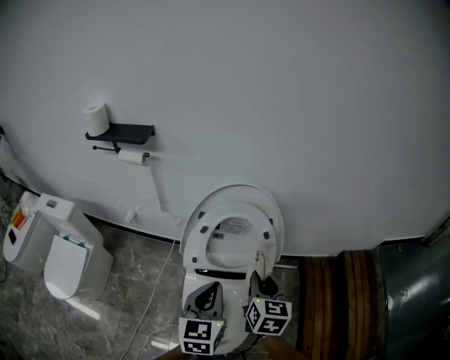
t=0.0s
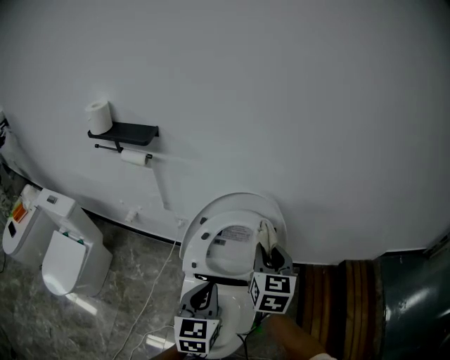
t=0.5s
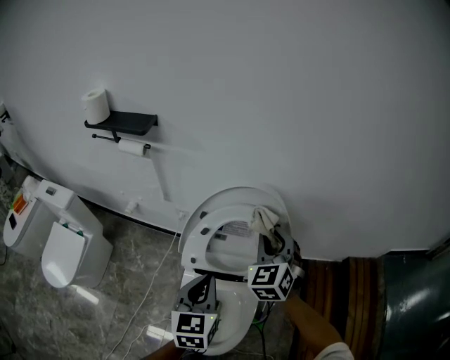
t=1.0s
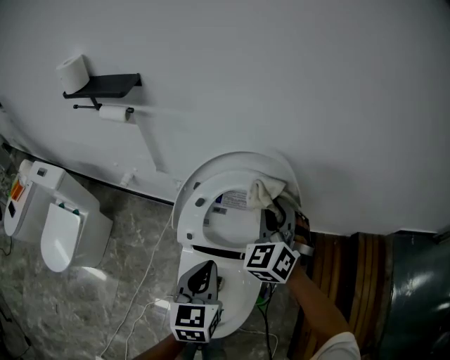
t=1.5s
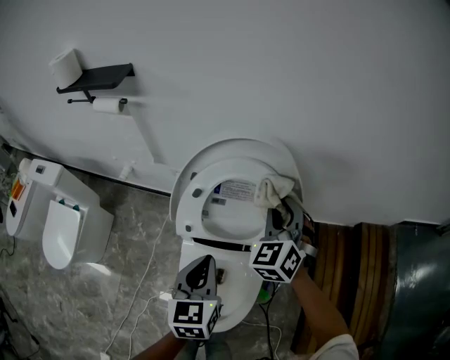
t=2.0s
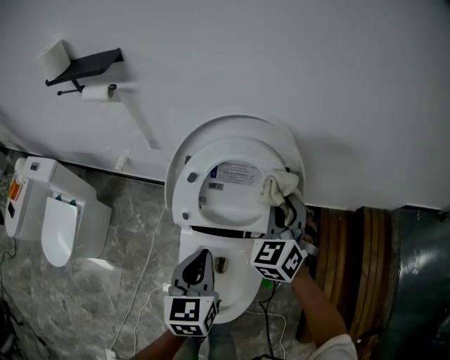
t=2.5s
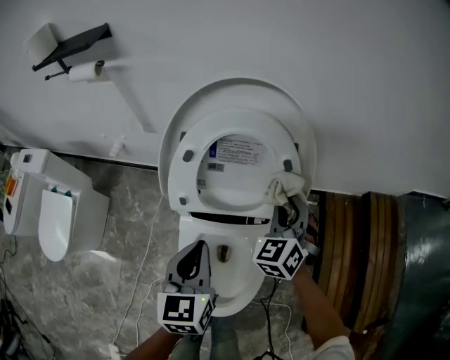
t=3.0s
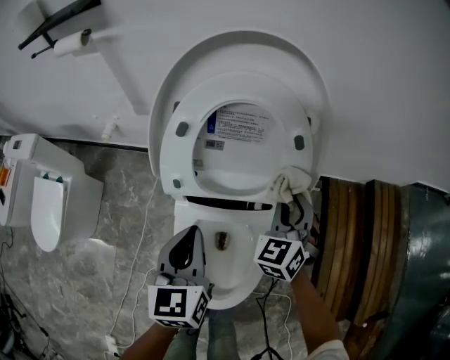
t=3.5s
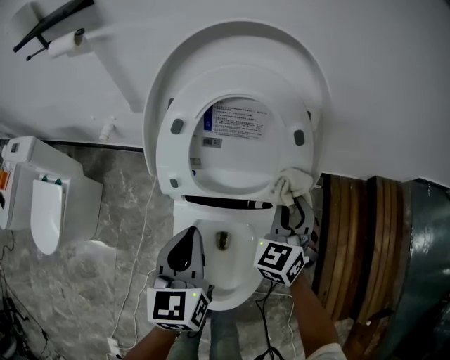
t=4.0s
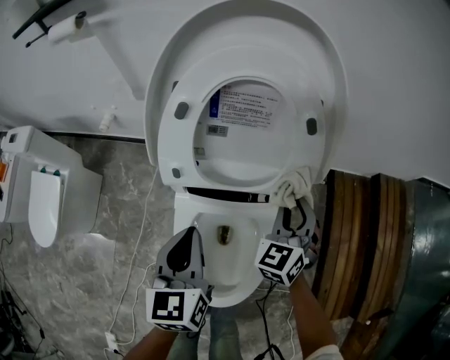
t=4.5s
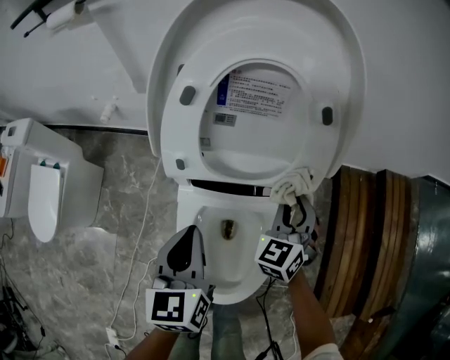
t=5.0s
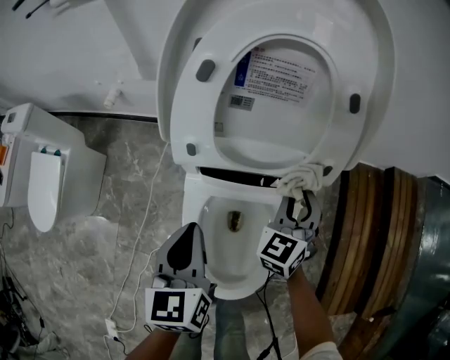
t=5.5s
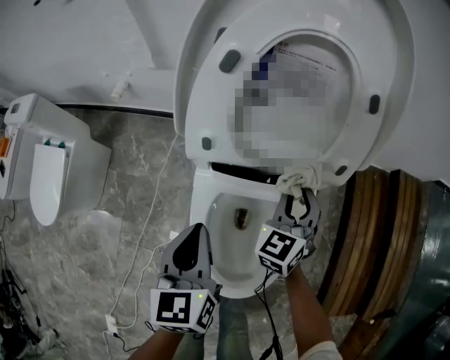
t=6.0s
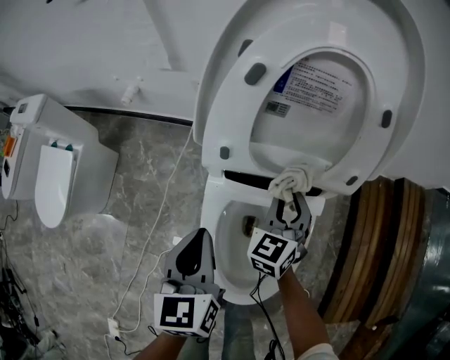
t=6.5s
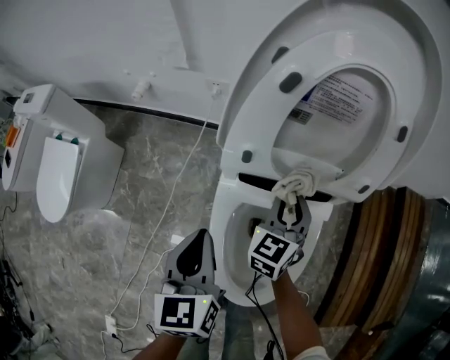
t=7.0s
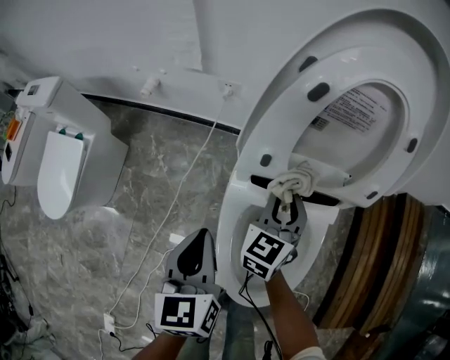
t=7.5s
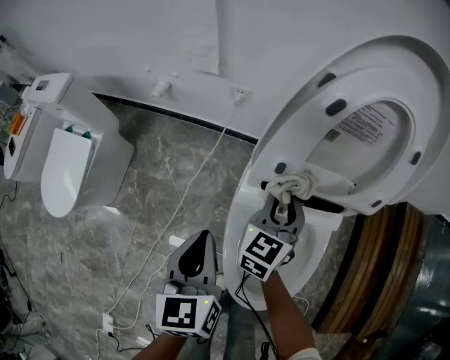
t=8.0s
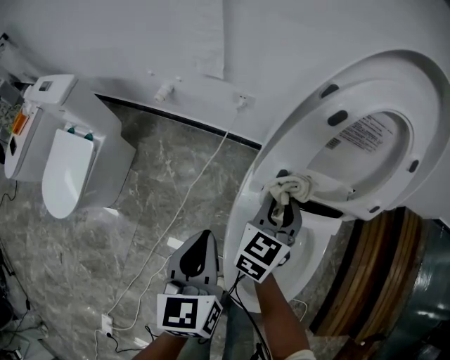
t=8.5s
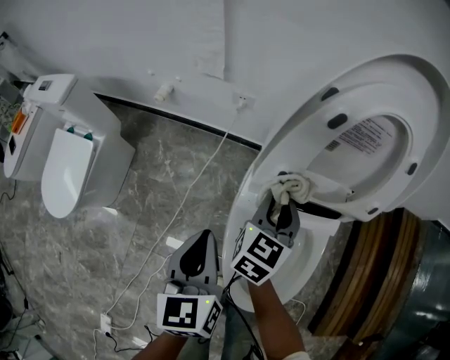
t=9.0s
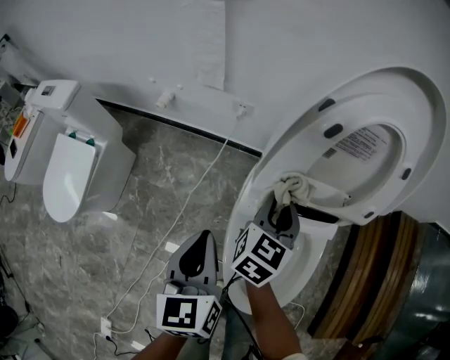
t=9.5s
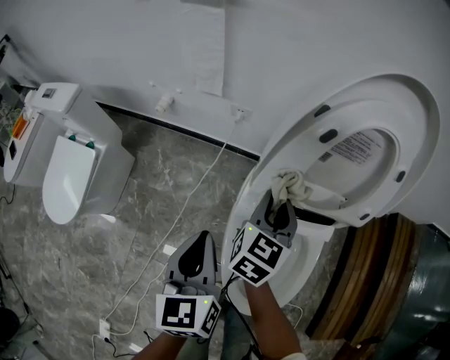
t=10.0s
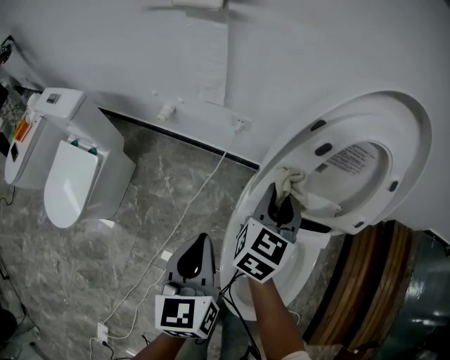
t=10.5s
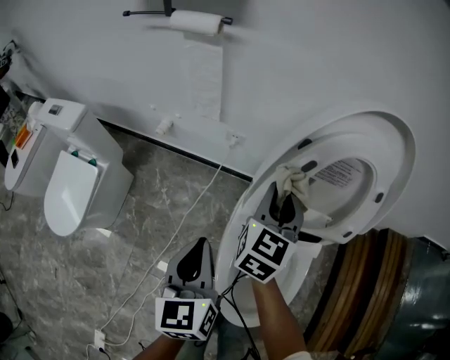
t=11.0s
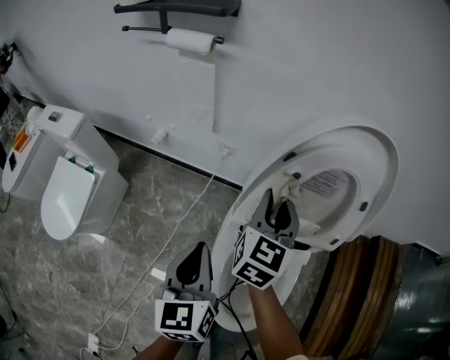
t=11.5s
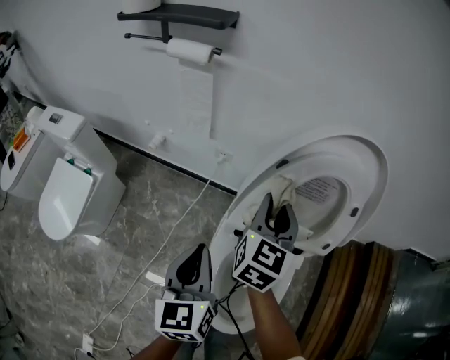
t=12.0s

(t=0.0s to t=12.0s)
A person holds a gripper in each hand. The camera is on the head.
t=0.0s - t=2.0s: The right gripper moves forward, roughly 15 cm, and rolls counterclockwise, seen from behind, by about 50 degrees. Meanwhile the left gripper goes approximately 10 cm downward and forward.
t=2.0s - t=4.0s: The right gripper moves downward and backward, about 20 cm. The left gripper heads downward, covering roughly 10 cm.
t=4.0s - t=6.0s: The left gripper shifts approximately 10 cm downward, backward and to the left, while the right gripper heads downward and to the left, covering roughly 10 cm.
t=6.0s - t=8.0s: Both grippers move to the left, about 15 cm.
t=8.0s - t=10.0s: The right gripper goes roughly 5 cm upward.
t=10.0s - t=12.0s: The left gripper goes about 5 cm upward. Meanwhile the right gripper is displaced upward by approximately 15 cm.

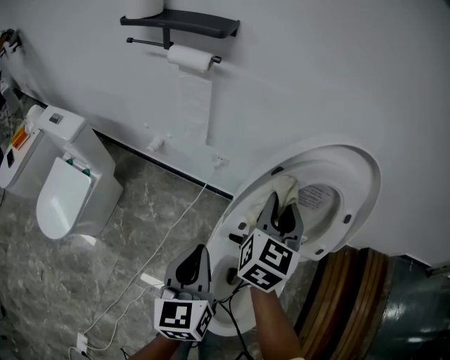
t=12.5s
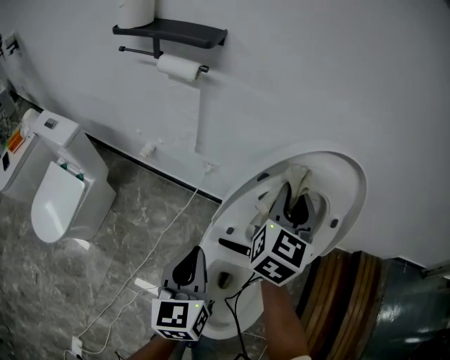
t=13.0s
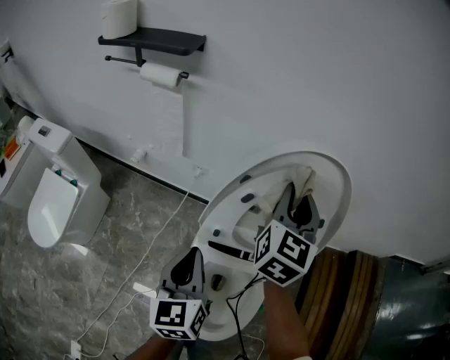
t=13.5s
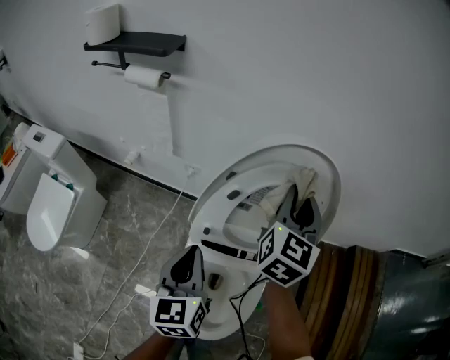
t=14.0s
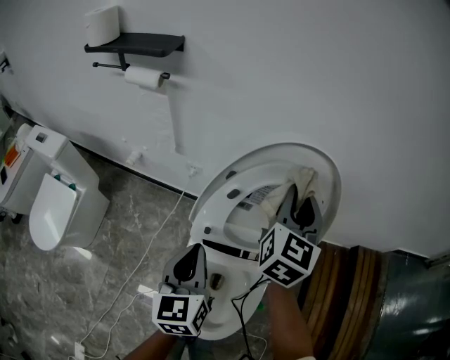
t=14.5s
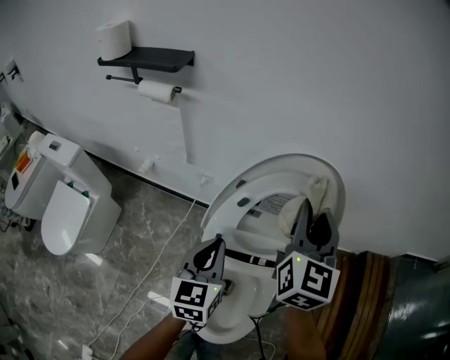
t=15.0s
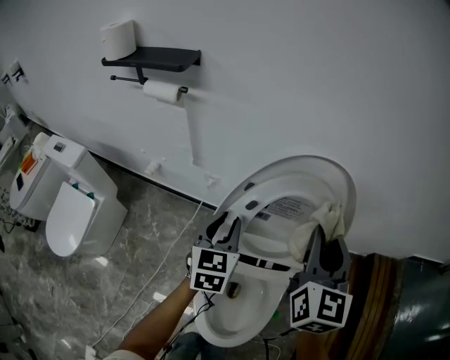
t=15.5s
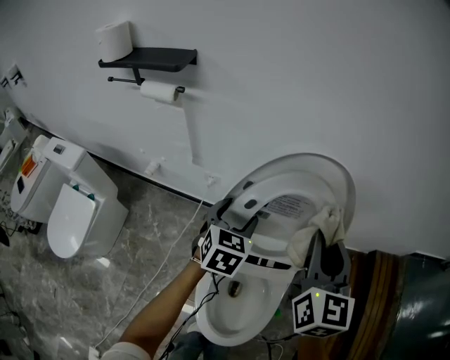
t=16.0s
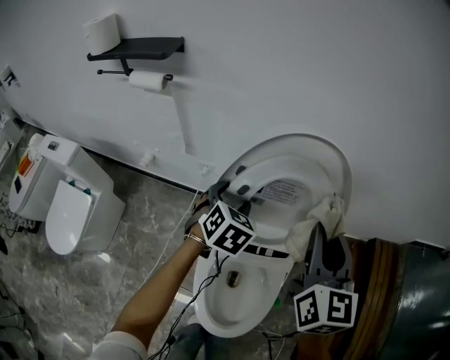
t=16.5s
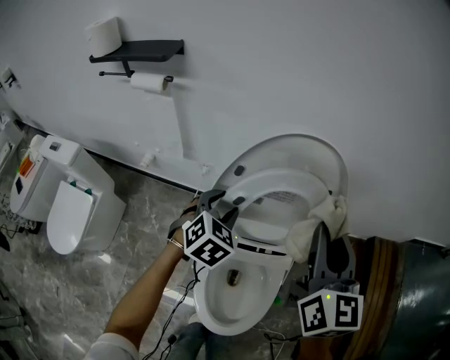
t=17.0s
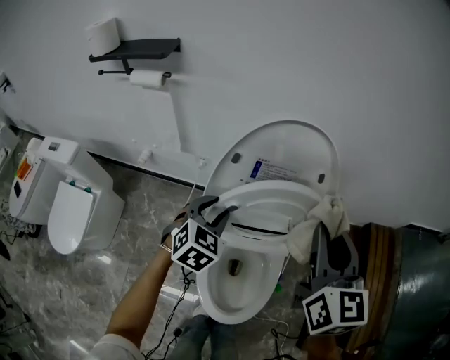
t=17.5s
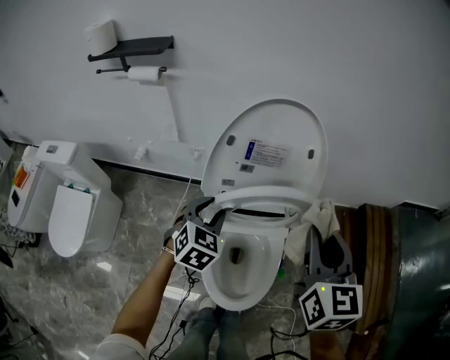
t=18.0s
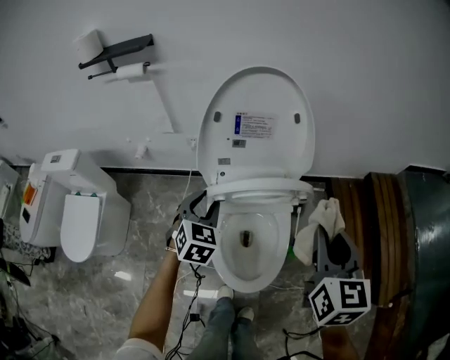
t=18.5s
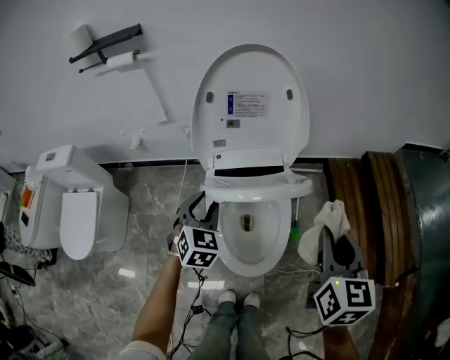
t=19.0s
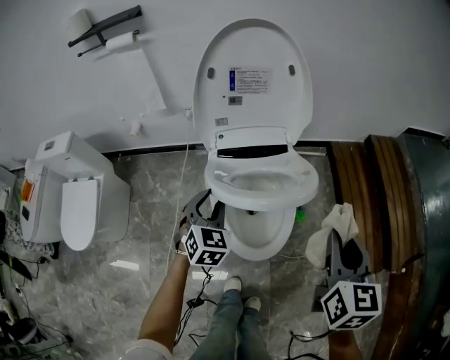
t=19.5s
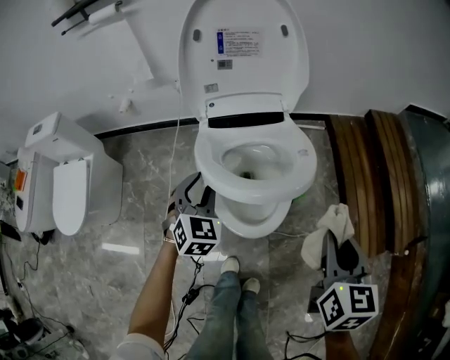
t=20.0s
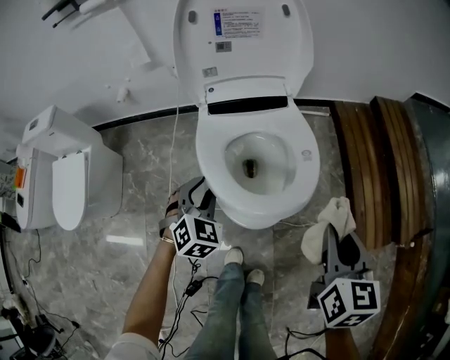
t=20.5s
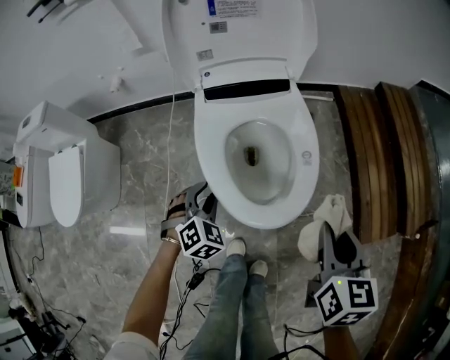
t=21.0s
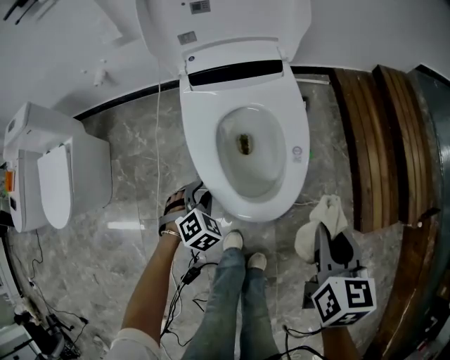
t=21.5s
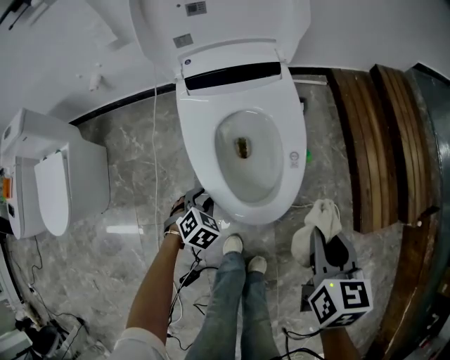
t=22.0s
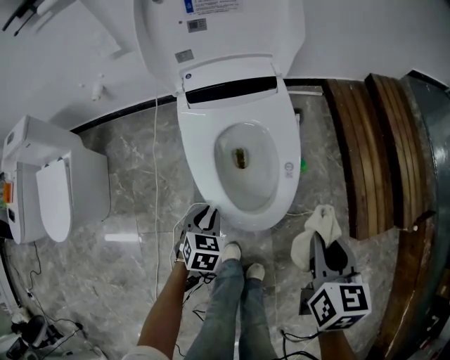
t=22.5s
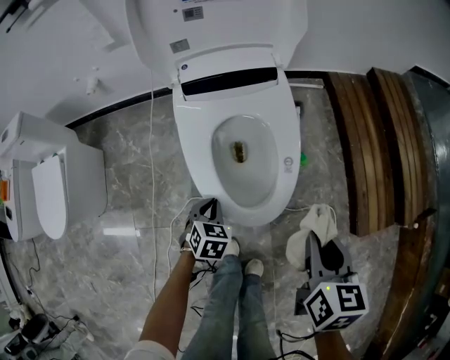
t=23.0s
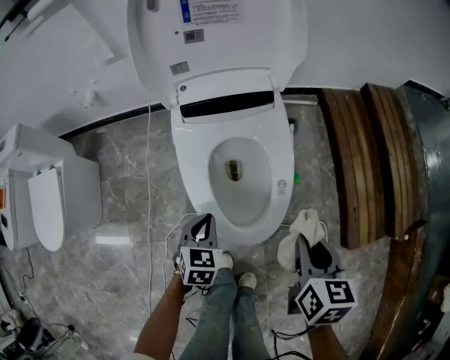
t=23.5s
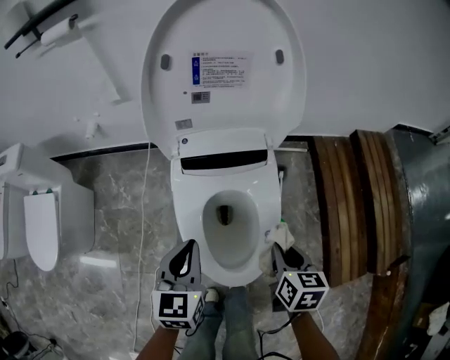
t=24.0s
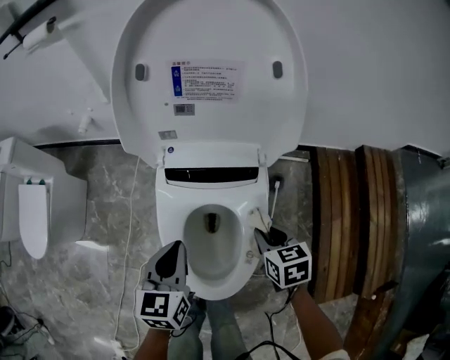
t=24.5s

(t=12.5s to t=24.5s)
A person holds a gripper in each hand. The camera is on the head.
t=12.5s - t=14.5s: The left gripper moves to the right, about 10 cm; the right gripper travels to the right and upward by roughly 15 cm.
t=14.5s - t=16.5s: The right gripper is displaced backward by roughly 10 cm. The left gripper moves forward, roughly 15 cm, changes its angle by approximately 50 degrees, and opens its fingers.
t=16.5s - t=18.5s: The grippers both shift backward by about 20 cm. The left gripper closes.
t=18.5s - t=20.5s: Both grippers travel together backward and downward, roughly 25 cm.
t=20.5s - t=22.5s: The right gripper shifts about 10 cm downward; the left gripper is displaced downward by some 15 cm, and swivels some 30 degrees.
t=22.5s - t=24.5s: The left gripper shifts some 25 cm upward and forward, and changes its angle by about 40 degrees, while the right gripper moves forward, approximately 30 cm, and swivels about 30 degrees.

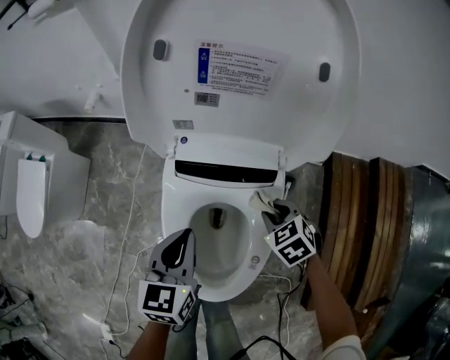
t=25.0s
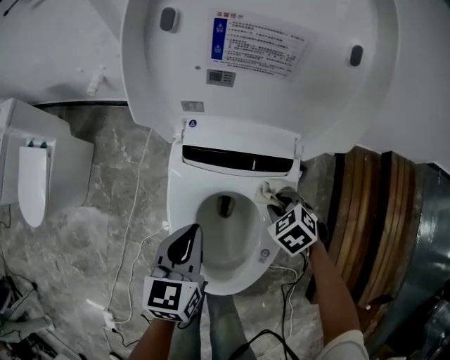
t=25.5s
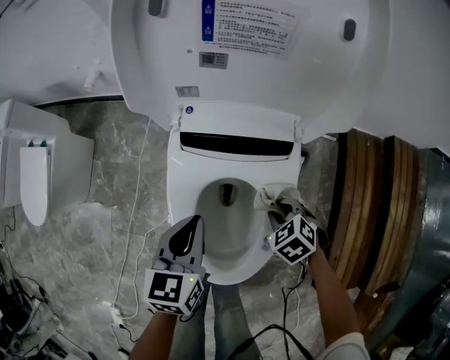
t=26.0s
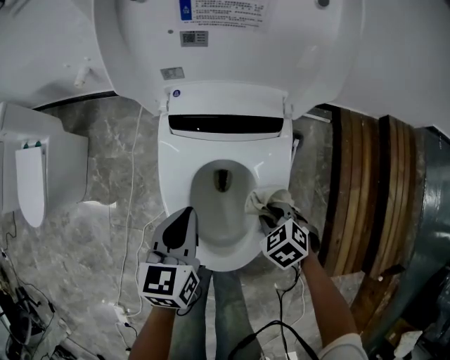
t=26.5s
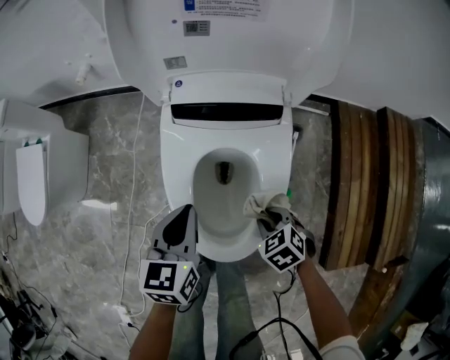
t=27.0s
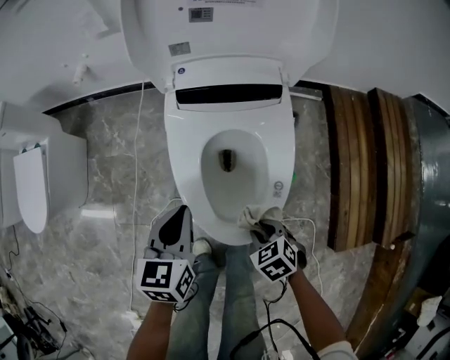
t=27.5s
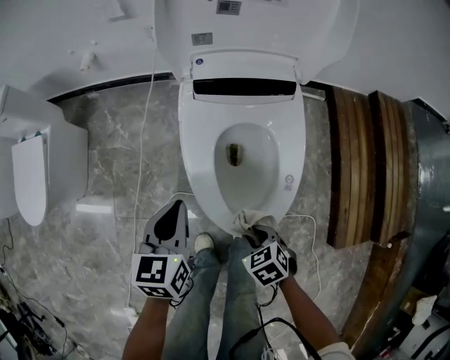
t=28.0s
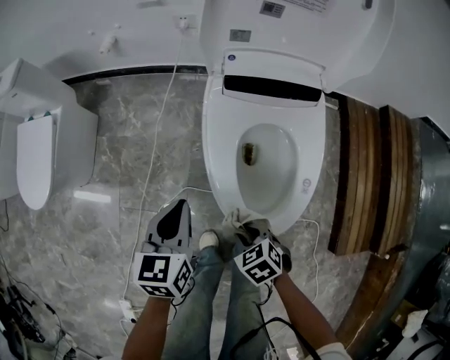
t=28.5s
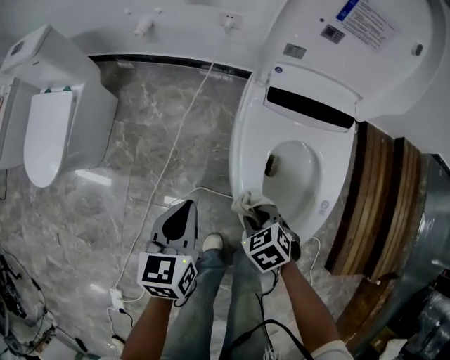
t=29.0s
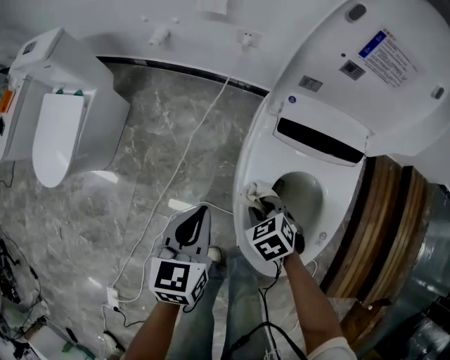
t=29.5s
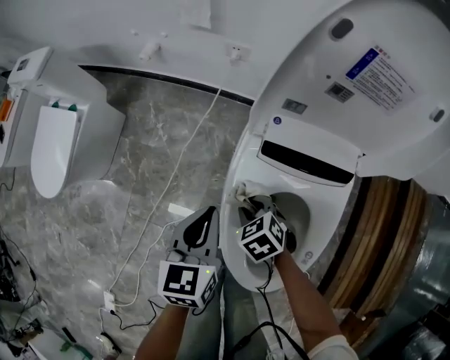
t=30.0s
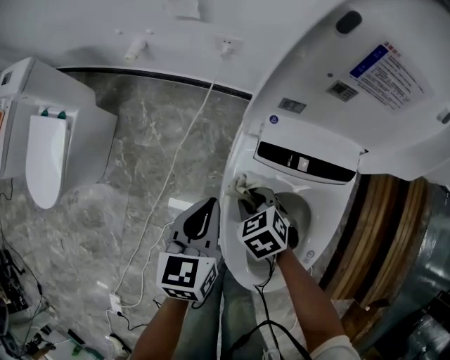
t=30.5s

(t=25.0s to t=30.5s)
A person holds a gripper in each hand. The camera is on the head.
t=25.0s - t=27.0s: The left gripper shifts roughly 5 cm backward; the right gripper moves backward and downward, approximately 20 cm.
t=27.0s - t=28.5s: The two grippers go approximately 20 cm to the left.
t=28.5s - t=30.5s: The right gripper moves forward, roughly 30 cm. Meanwhile the left gripper moves forward and to the right, about 15 cm.
